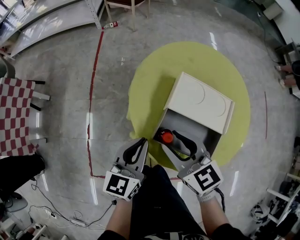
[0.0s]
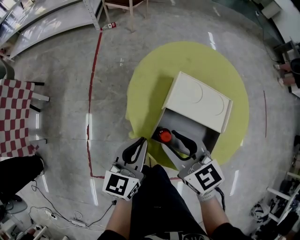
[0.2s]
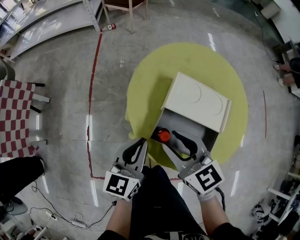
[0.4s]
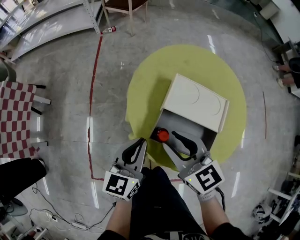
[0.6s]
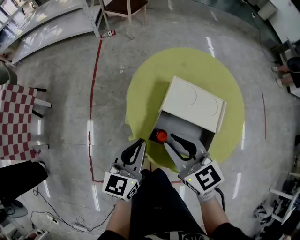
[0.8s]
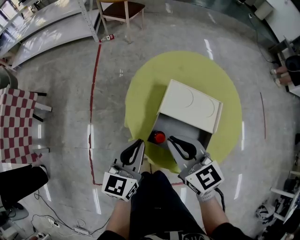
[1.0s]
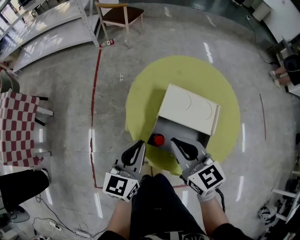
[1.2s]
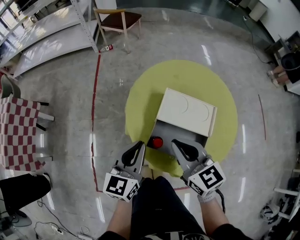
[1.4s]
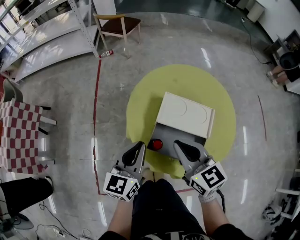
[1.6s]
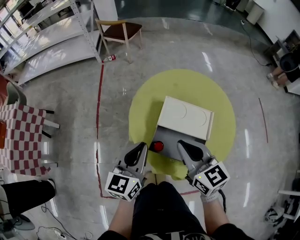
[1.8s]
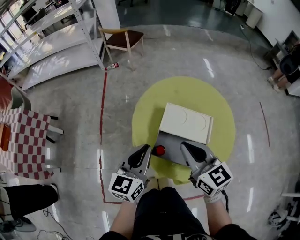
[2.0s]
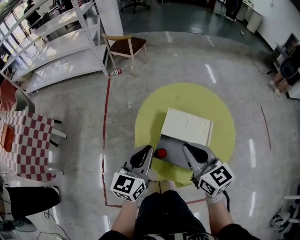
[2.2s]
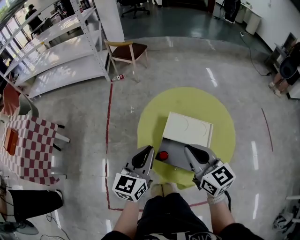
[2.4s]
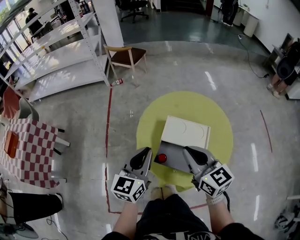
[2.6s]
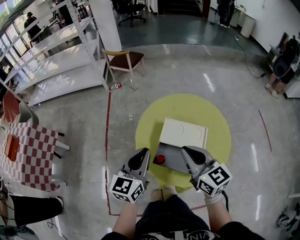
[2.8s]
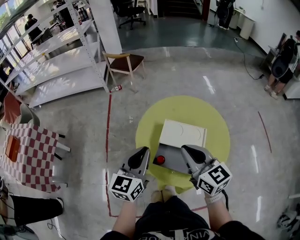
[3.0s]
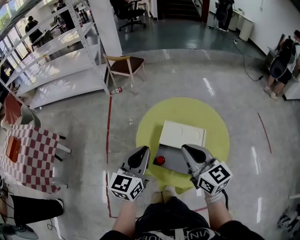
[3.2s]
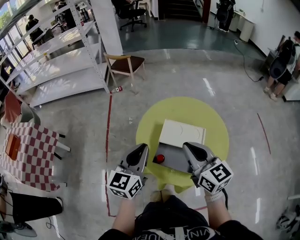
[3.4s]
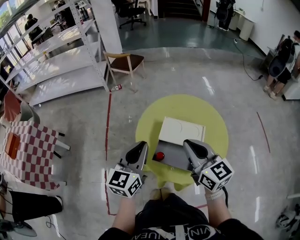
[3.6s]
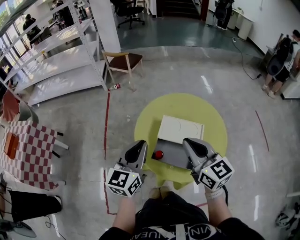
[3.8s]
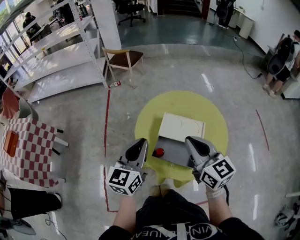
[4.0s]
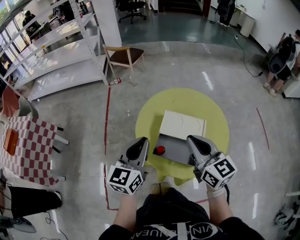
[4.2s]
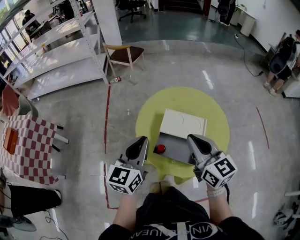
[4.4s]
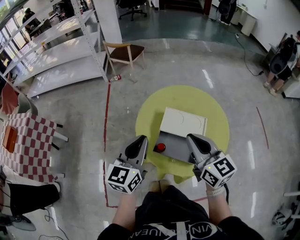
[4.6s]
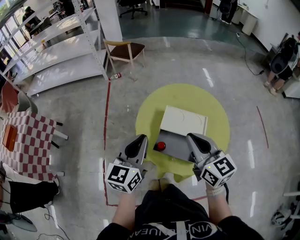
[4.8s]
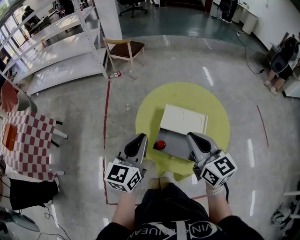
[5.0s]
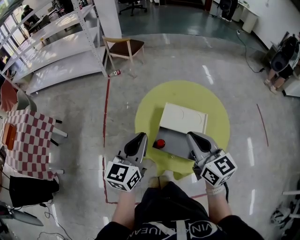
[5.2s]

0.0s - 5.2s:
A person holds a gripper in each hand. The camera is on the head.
0.0s - 1.8s: The right gripper heads upward and to the right, covering roughly 10 cm, and closes its fingers. Meanwhile the left gripper is displaced upward by some 10 cm.
1.8s - 3.4s: The grippers both shift upward by about 10 cm.
3.4s - 5.2s: The grippers stay close to where they were, moving slightly.

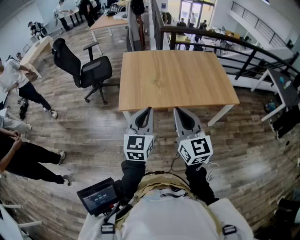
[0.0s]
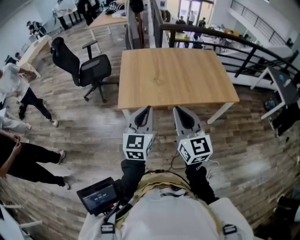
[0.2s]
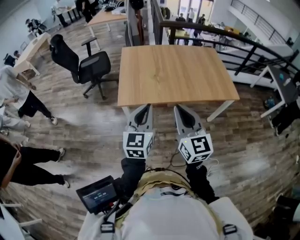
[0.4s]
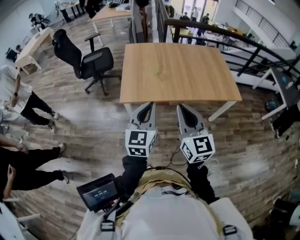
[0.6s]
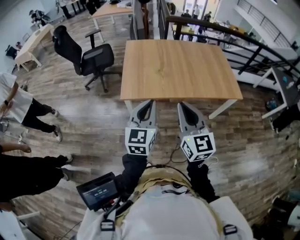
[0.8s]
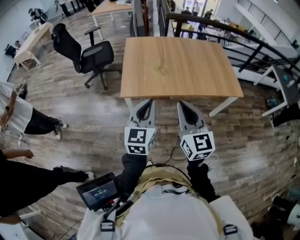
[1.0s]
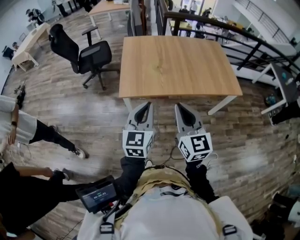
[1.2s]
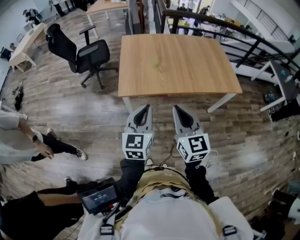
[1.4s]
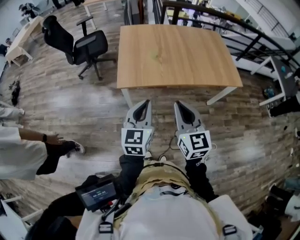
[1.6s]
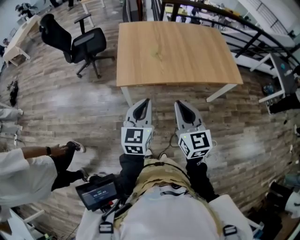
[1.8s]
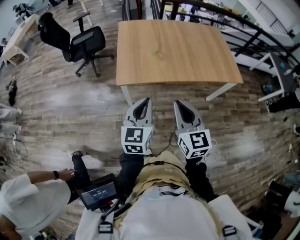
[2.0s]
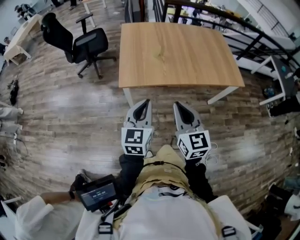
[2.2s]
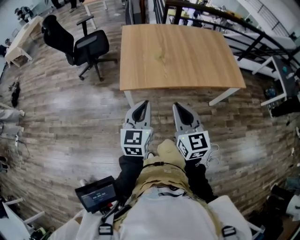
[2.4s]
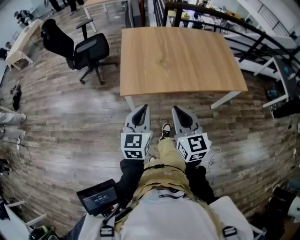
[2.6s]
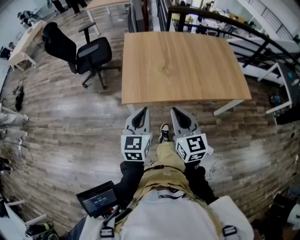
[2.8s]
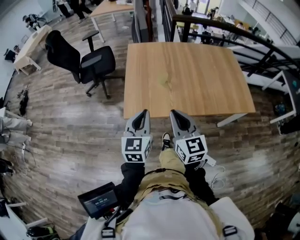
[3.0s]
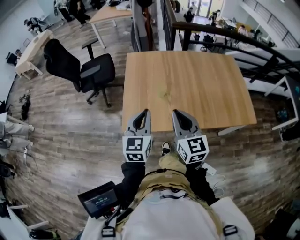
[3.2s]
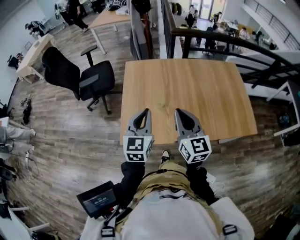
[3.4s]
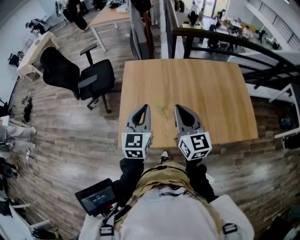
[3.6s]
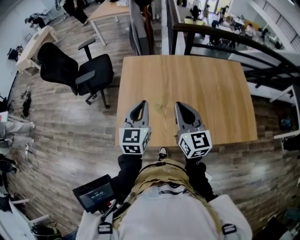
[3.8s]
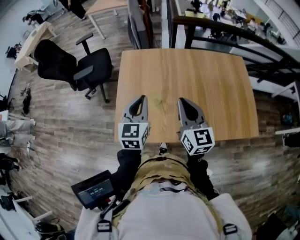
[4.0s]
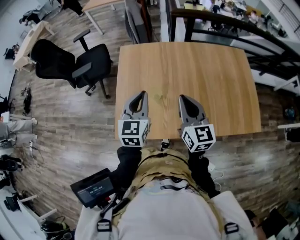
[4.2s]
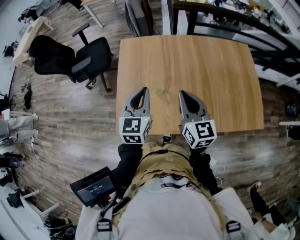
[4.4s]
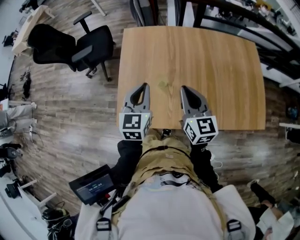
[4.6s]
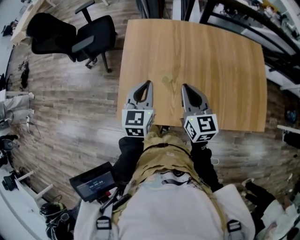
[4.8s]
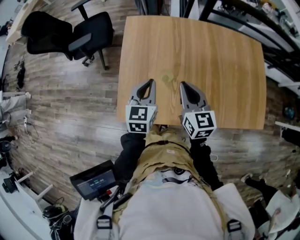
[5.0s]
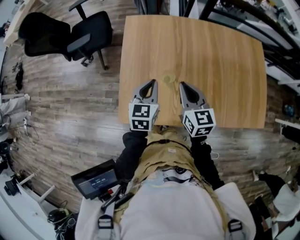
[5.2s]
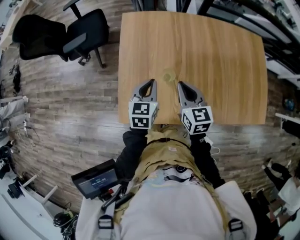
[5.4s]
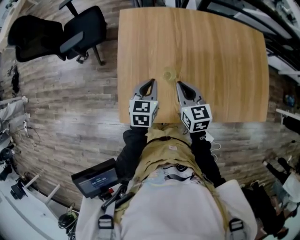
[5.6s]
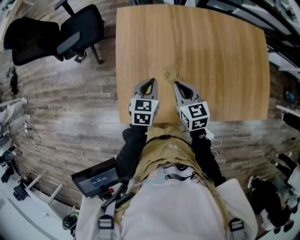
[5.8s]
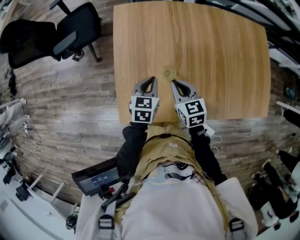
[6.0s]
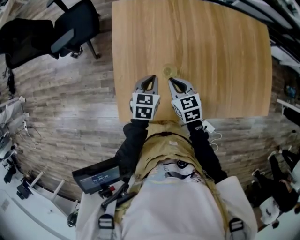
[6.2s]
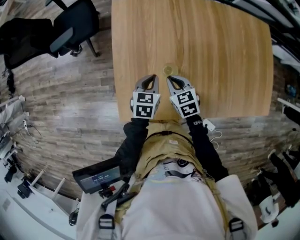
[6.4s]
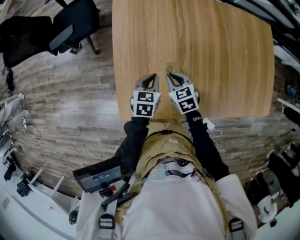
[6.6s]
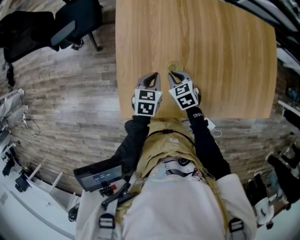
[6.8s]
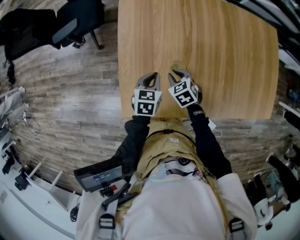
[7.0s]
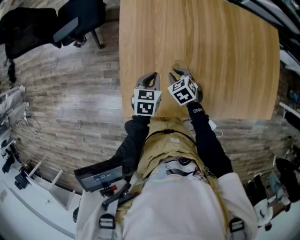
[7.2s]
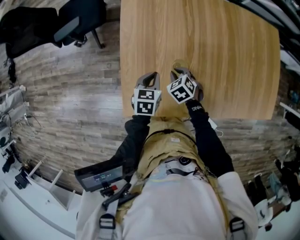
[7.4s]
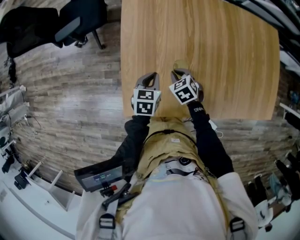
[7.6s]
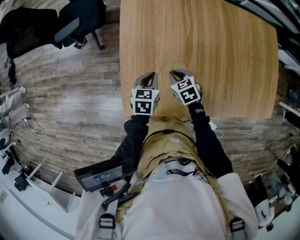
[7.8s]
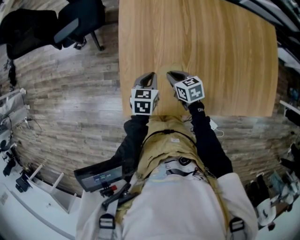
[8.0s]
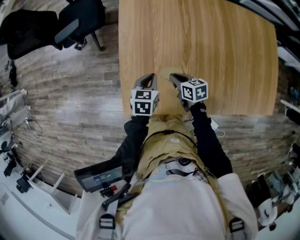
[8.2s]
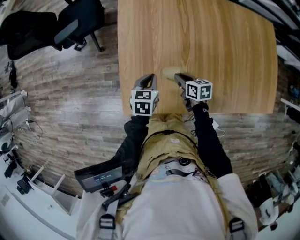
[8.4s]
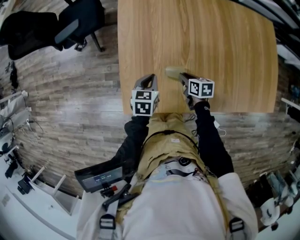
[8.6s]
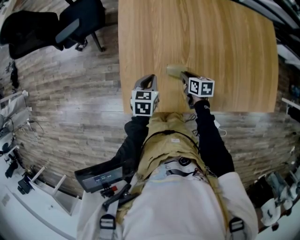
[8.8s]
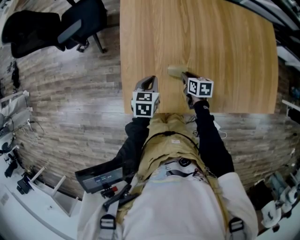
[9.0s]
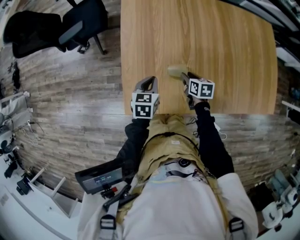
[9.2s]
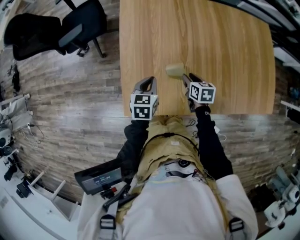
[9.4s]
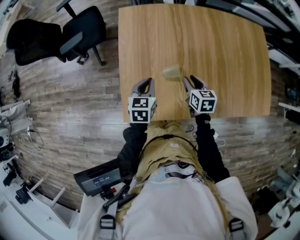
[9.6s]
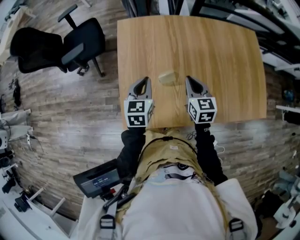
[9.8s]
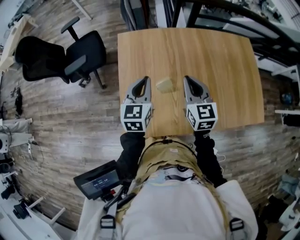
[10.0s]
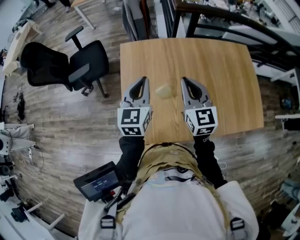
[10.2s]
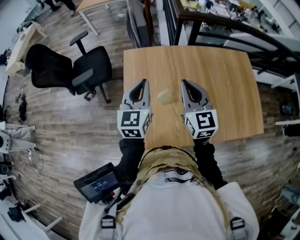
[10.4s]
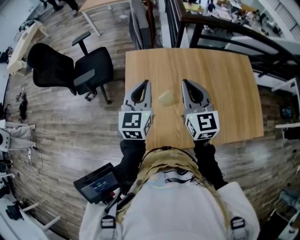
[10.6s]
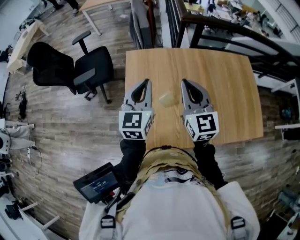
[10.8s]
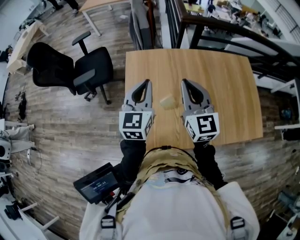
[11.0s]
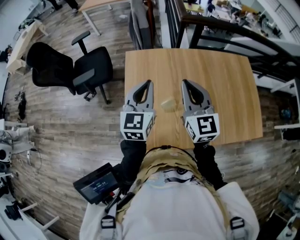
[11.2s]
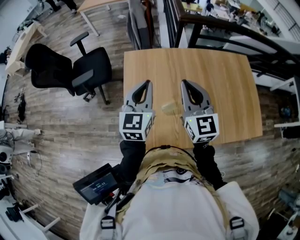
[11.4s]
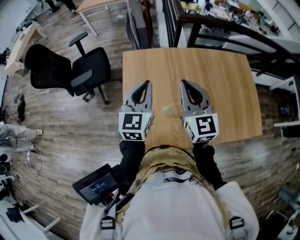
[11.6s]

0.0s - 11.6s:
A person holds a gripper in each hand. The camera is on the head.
0.0s - 1.4s: The right gripper moves downward, some 5 cm. Meanwhile the left gripper shifts by roughly 5 cm.
1.4s - 2.8s: The two grippers go some 10 cm forward and downward.
2.8s - 4.4s: The two grippers go roughly 35 cm forward.
4.4s - 5.8s: The left gripper goes roughly 20 cm downward, and swivels some 30 degrees; the right gripper moves downward, to the left and forward, some 20 cm, and turns by approximately 30 degrees.
5.8s - 7.2s: The right gripper heads downward, covering roughly 15 cm, and swivels about 40 degrees; the left gripper heads downward, covering about 10 cm.
7.2s - 8.8s: The right gripper shifts roughly 5 cm to the right, and rotates around the line of its fingers by some 50 degrees, clockwise from behind.
8.8s - 10.2s: Both grippers move upward, roughly 35 cm. The left gripper angles its fingers upward, by about 40 degrees. The right gripper angles its fingers upward, by some 40 degrees.
10.2s - 11.6s: The right gripper travels upward by some 5 cm.

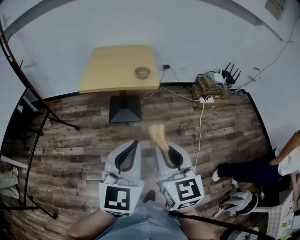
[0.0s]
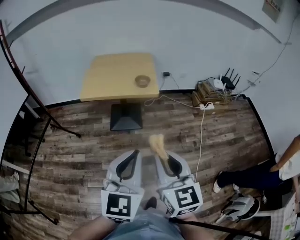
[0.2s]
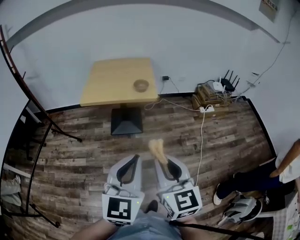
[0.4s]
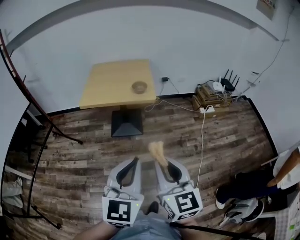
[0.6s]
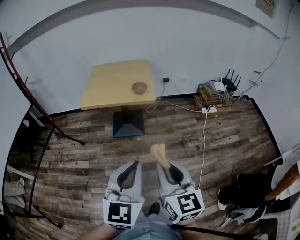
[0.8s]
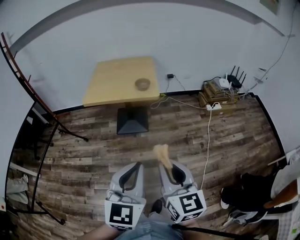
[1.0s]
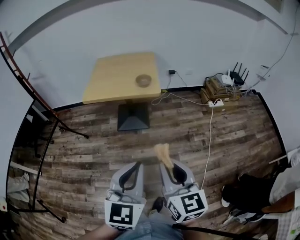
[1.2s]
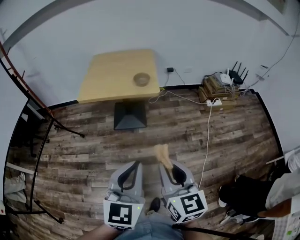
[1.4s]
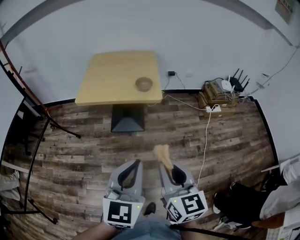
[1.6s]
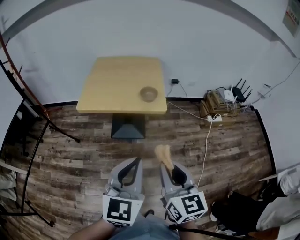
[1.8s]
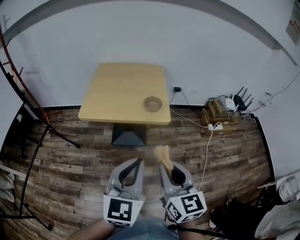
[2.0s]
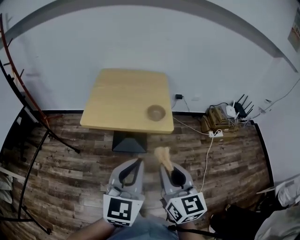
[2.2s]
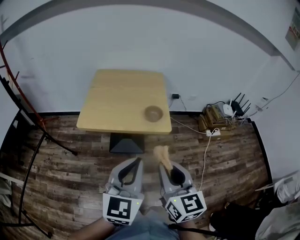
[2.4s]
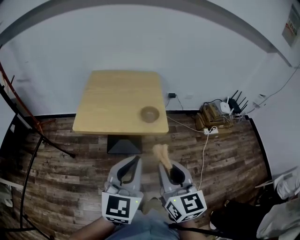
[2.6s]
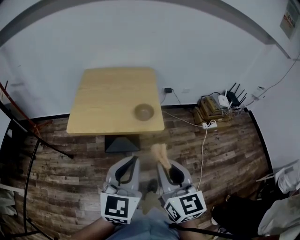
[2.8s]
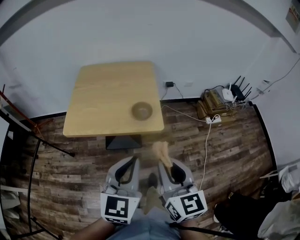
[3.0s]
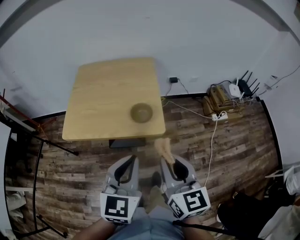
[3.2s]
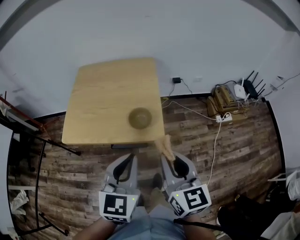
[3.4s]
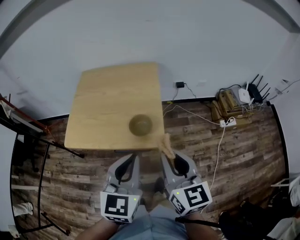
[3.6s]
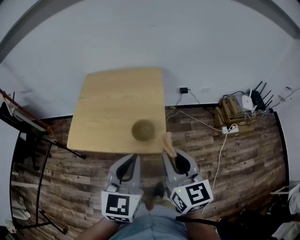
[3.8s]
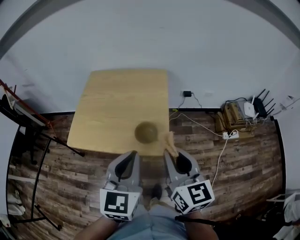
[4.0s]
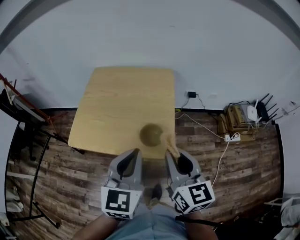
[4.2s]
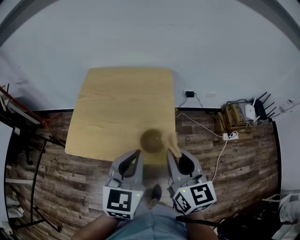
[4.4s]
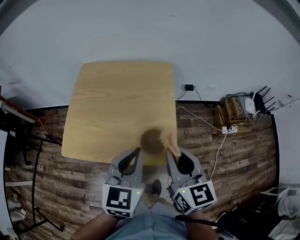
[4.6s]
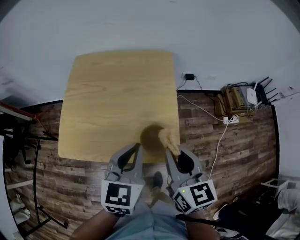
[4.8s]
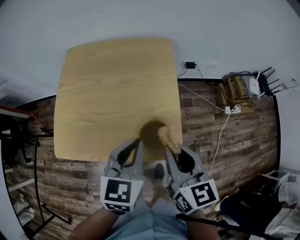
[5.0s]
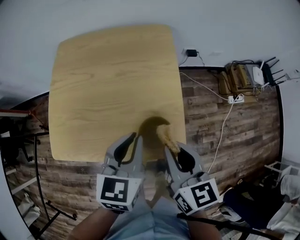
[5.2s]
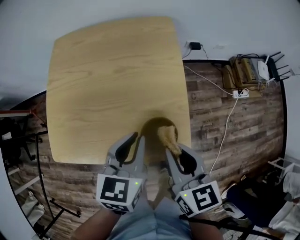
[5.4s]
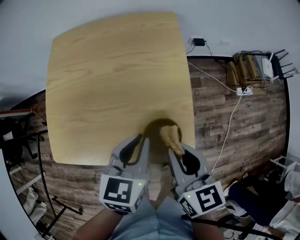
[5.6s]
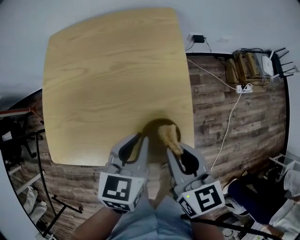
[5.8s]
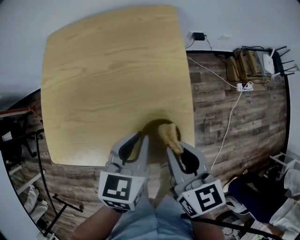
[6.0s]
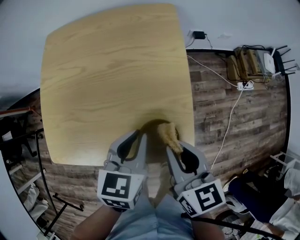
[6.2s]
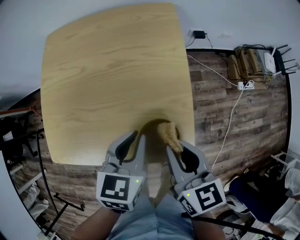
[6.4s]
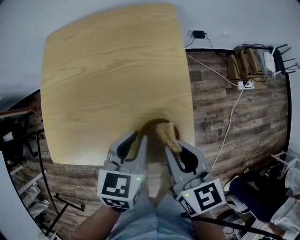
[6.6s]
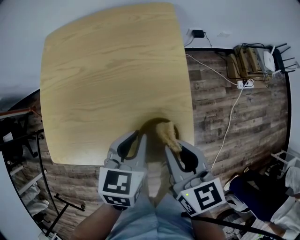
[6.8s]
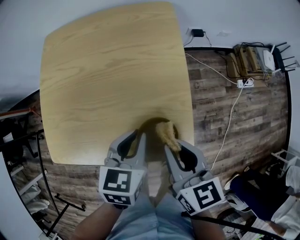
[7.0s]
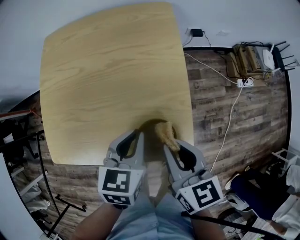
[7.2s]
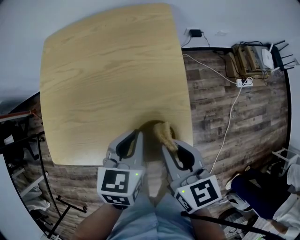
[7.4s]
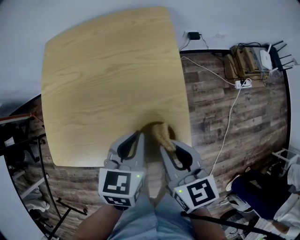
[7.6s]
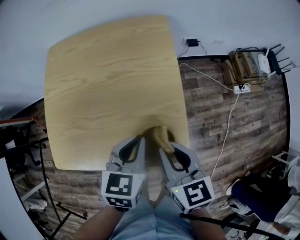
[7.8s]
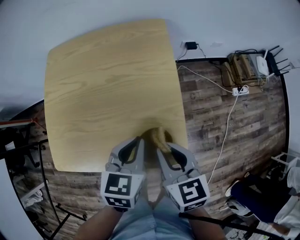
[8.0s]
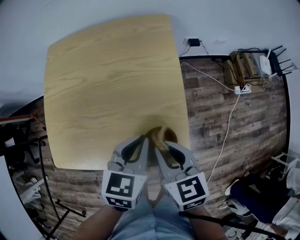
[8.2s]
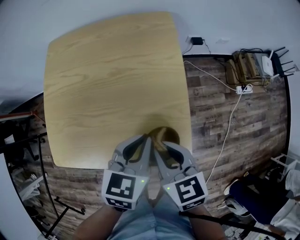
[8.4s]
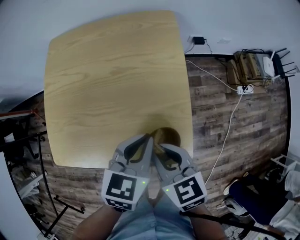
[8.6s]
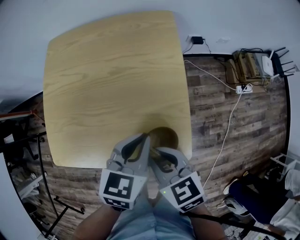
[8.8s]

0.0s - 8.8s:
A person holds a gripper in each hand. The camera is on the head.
0.0s - 1.4s: The left gripper shifts some 5 cm downward, while the right gripper moves downward and to the right, approximately 10 cm.
1.4s - 3.0s: The two grippers go approximately 30 cm forward.
3.0s - 4.4s: The grippers both shift forward by about 20 cm.
4.4s - 5.8s: The right gripper heads downward, covering some 15 cm, and turns by roughly 20 degrees, while the left gripper shifts some 20 cm downward and forward, and swivels some 30 degrees.
5.8s - 7.4s: The grippers make only small movements.
7.4s - 8.8s: The right gripper is displaced to the left by roughly 5 cm, and changes its angle by about 20 degrees.
